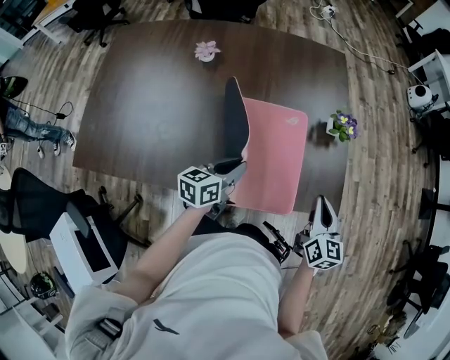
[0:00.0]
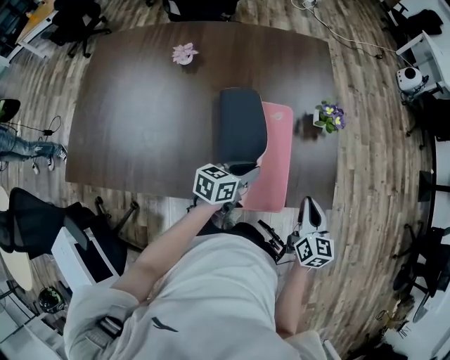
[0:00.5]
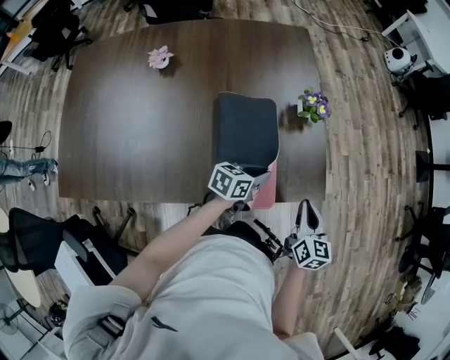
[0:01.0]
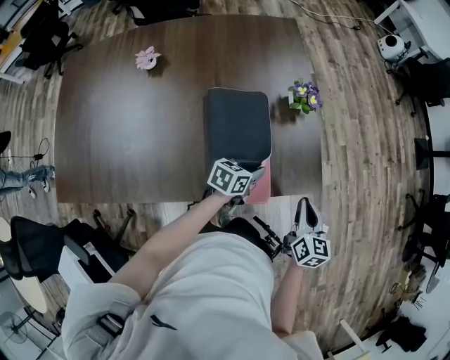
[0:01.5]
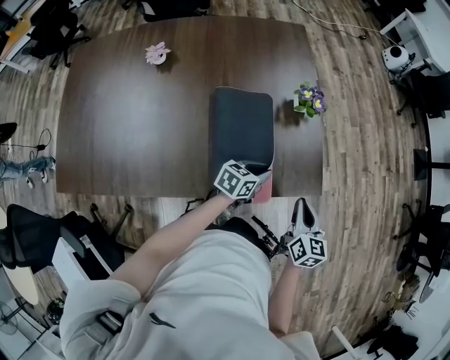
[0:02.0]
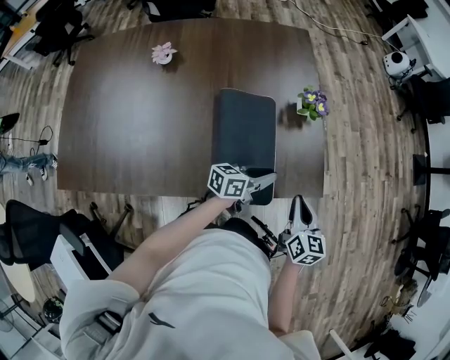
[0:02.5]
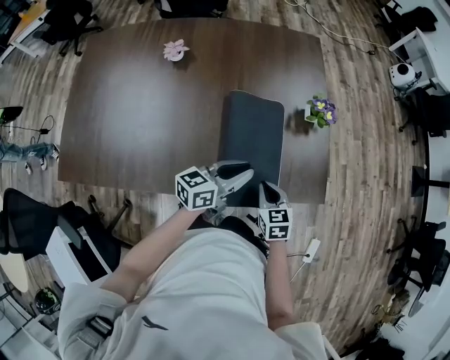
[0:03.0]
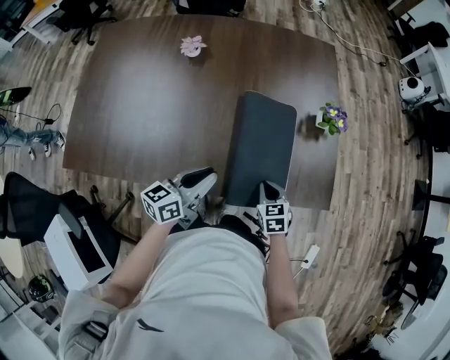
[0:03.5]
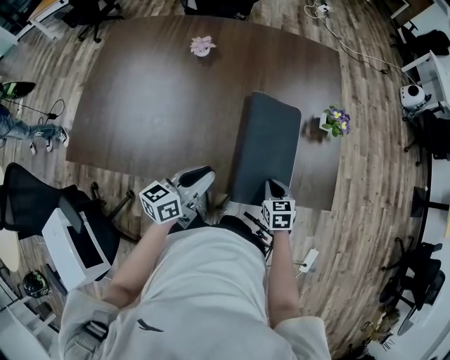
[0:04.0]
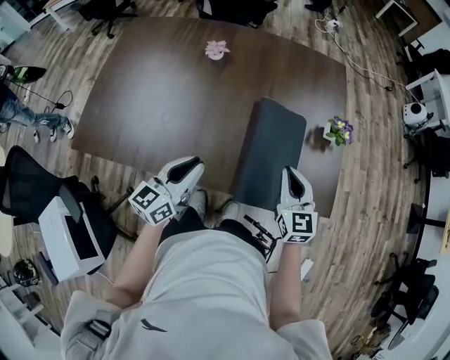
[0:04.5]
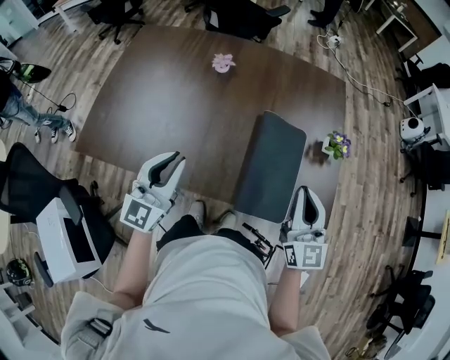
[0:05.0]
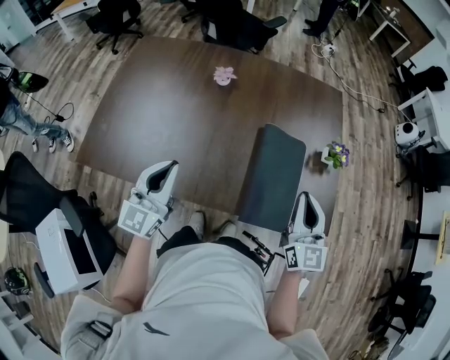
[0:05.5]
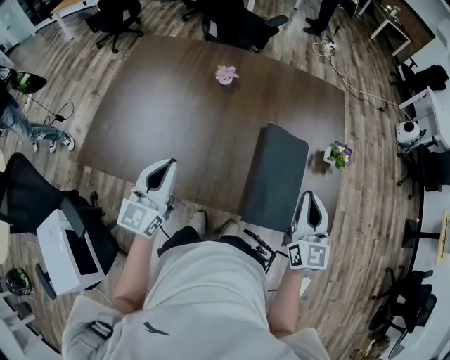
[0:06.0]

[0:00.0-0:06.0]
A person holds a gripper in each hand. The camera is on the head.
0:00.0 to 0:02.0: The right gripper is displaced to the right by about 10 cm. Meanwhile the left gripper shifts approximately 20 cm to the right and forward, and turns by roughly 30 degrees.
0:02.0 to 0:04.0: The left gripper shifts by approximately 30 cm, and swivels some 40 degrees. The right gripper ends up approximately 20 cm from where it was, and swivels approximately 40 degrees.
0:04.0 to 0:06.0: The left gripper is displaced to the left and upward by approximately 20 cm, and turns by about 40 degrees, while the right gripper heads upward, covering roughly 30 cm, and tips its fingers upward by roughly 50 degrees.

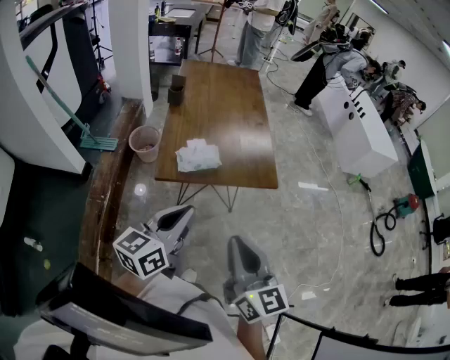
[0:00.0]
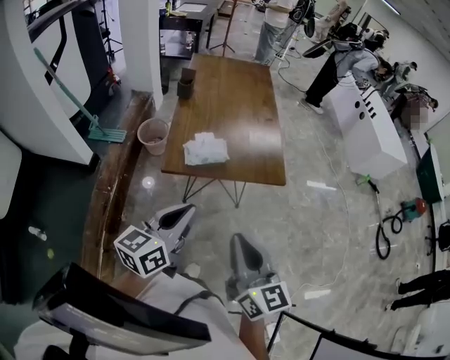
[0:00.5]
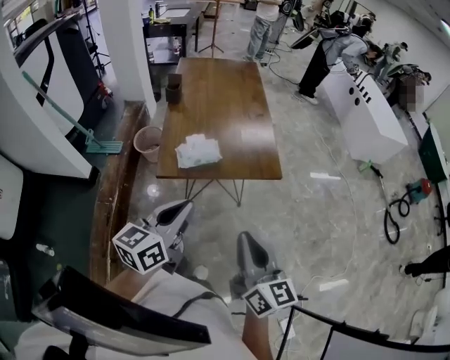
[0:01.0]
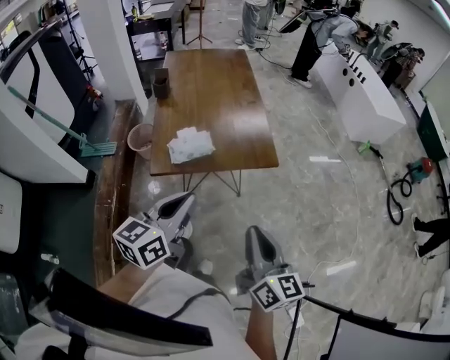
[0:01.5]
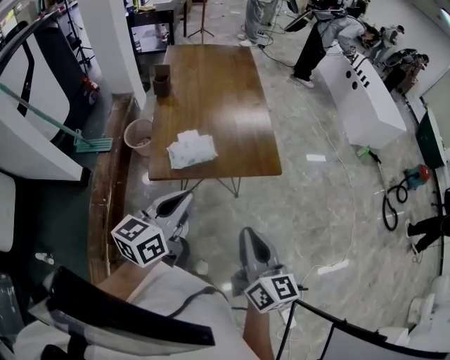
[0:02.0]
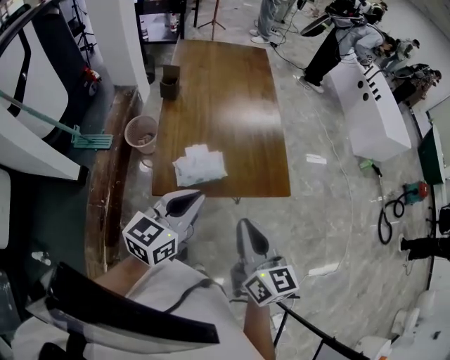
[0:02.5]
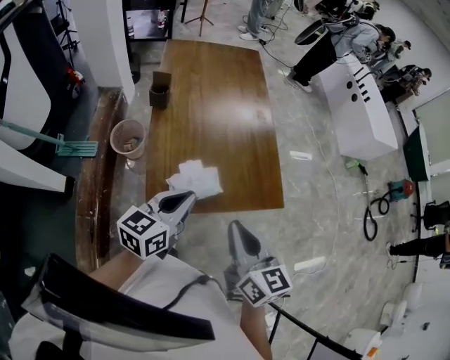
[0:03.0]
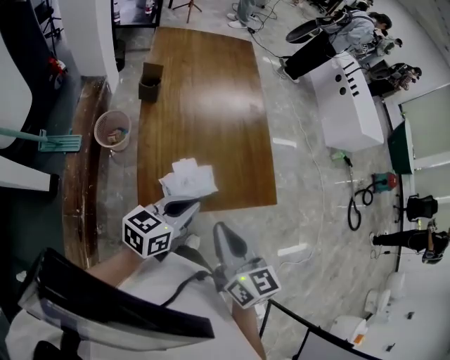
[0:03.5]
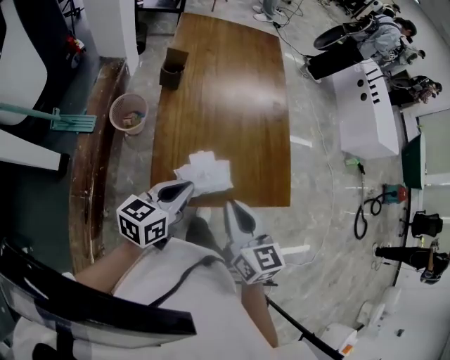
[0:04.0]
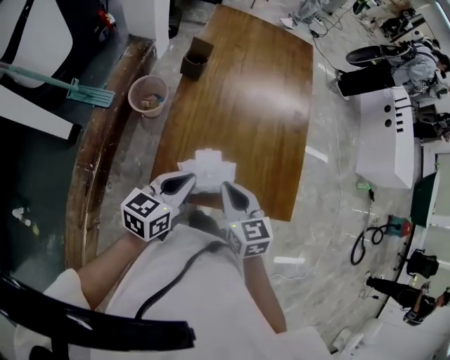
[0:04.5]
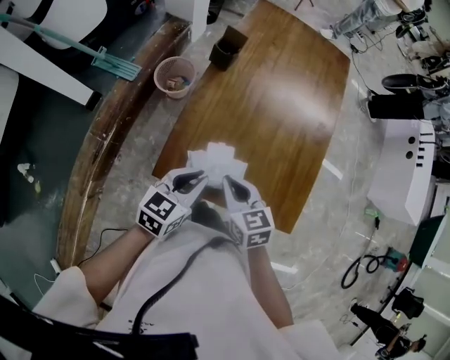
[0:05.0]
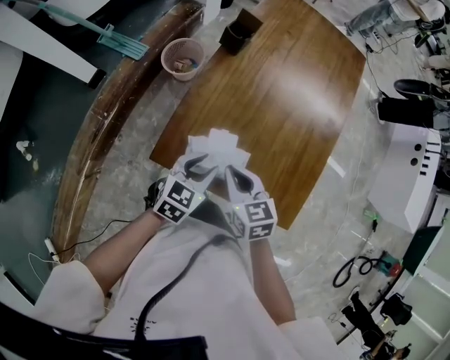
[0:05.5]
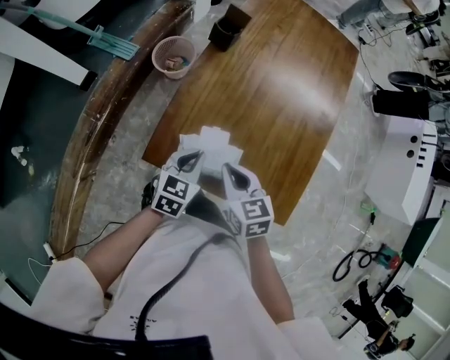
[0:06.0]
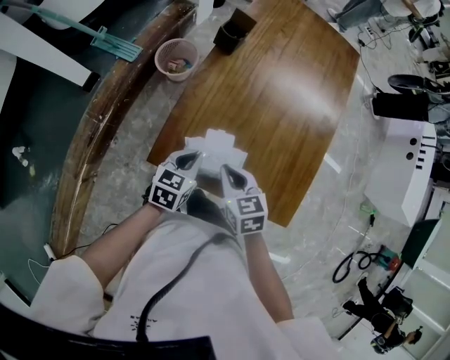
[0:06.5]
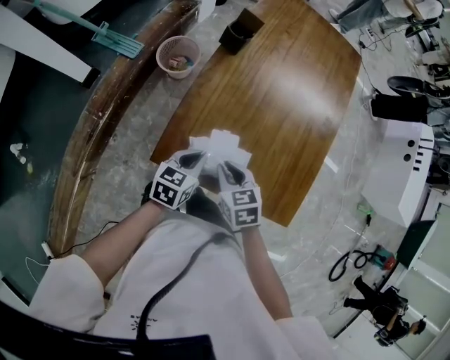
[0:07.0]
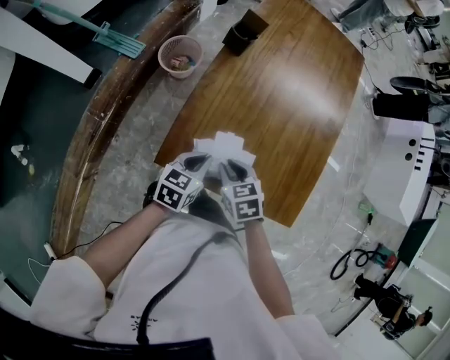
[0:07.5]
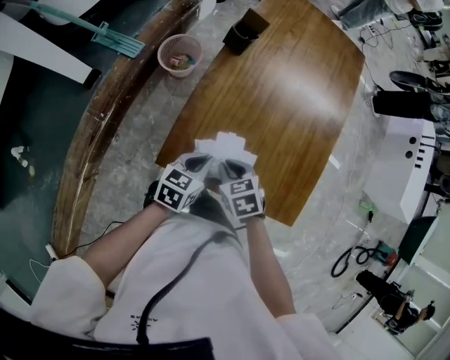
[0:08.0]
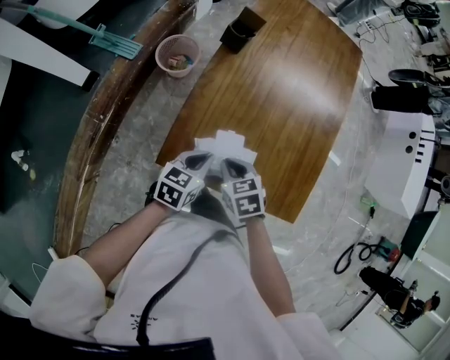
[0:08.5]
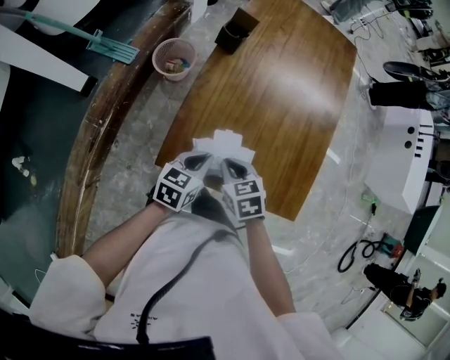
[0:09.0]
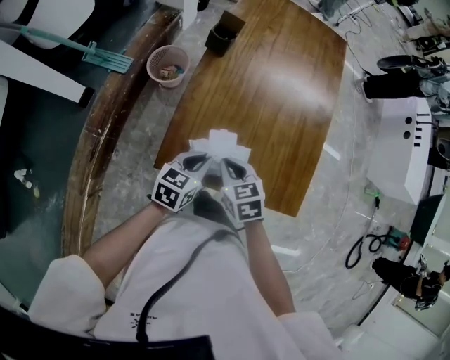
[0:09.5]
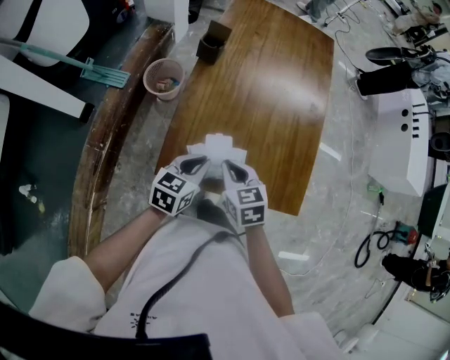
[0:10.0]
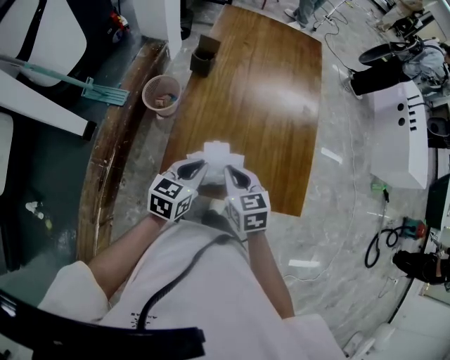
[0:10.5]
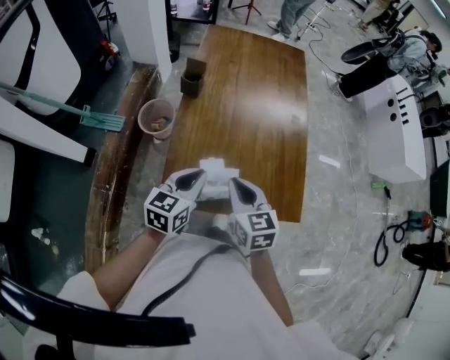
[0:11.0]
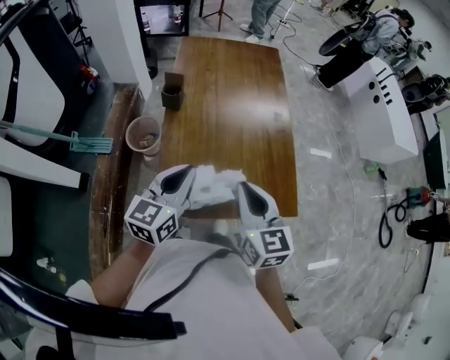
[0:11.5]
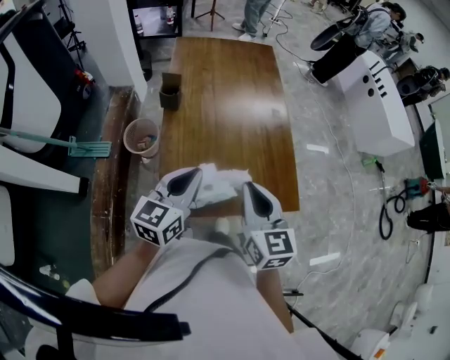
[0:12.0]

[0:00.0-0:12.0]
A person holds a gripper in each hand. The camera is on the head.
0:00.0 to 0:02.0: Both grippers travel together forward, some 5 cm.
0:02.0 to 0:04.0: The right gripper goes approximately 30 cm forward and to the left, and rotates about 20 degrees; the left gripper travels forward, to the left and downward by roughly 25 cm.
0:04.0 to 0:06.0: Both grippers travel together downward, roughly 15 cm. The left gripper turns by approximately 40 degrees, and opens, then closes once more; the right gripper changes its angle by approximately 40 degrees.
0:06.0 to 0:08.0: The right gripper is displaced downward by roughly 5 cm, and turns by roughly 20 degrees.
0:08.0 to 0:10.0: Both grippers travel together upward, roughly 5 cm. The right gripper changes its angle by about 20 degrees.
0:10.0 to 0:12.0: Both grippers travel together upward, roughly 20 cm. The right gripper changes its angle by approximately 40 degrees, while the left gripper changes its angle by approximately 20 degrees.

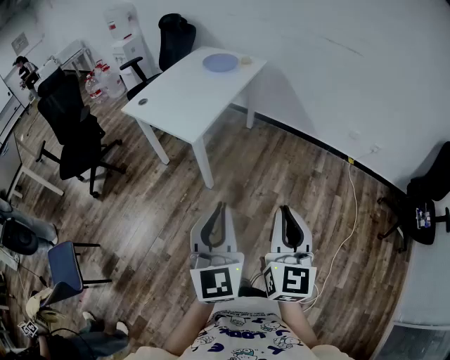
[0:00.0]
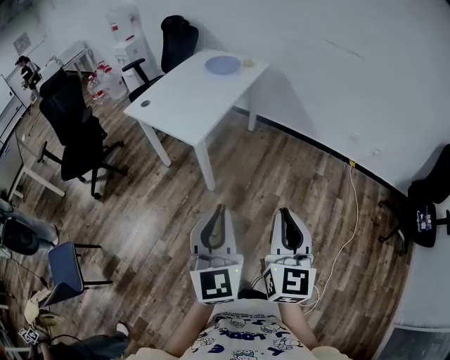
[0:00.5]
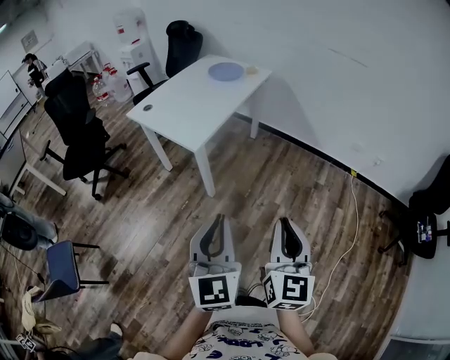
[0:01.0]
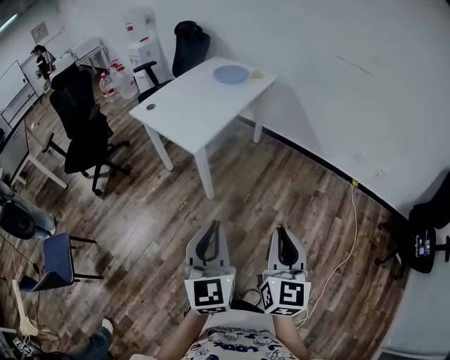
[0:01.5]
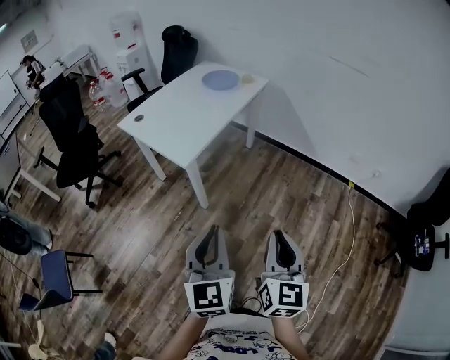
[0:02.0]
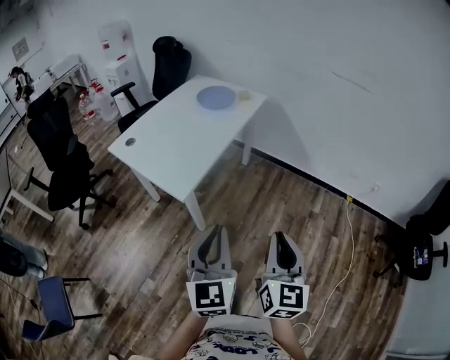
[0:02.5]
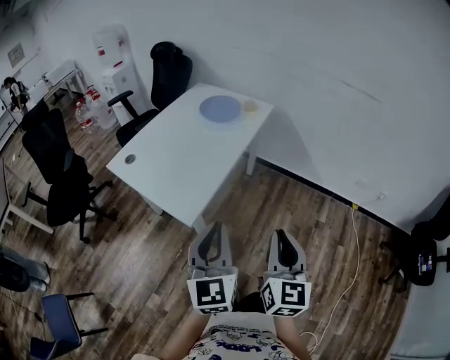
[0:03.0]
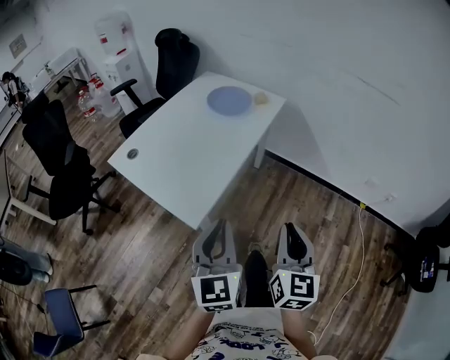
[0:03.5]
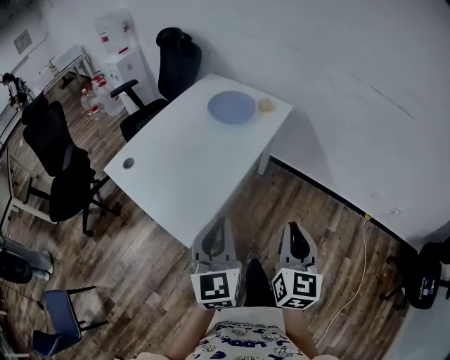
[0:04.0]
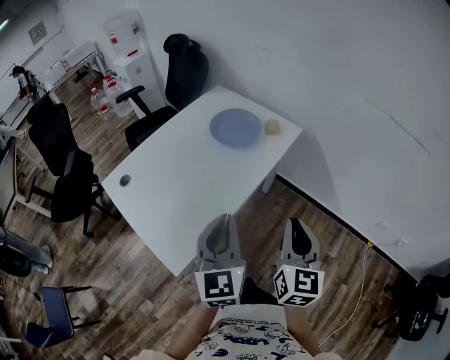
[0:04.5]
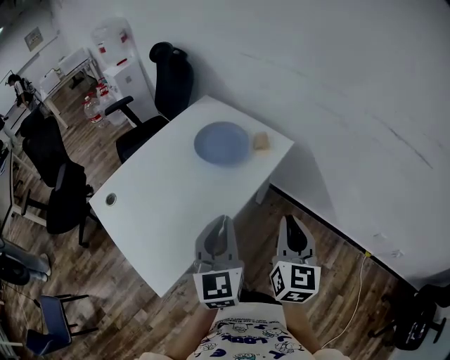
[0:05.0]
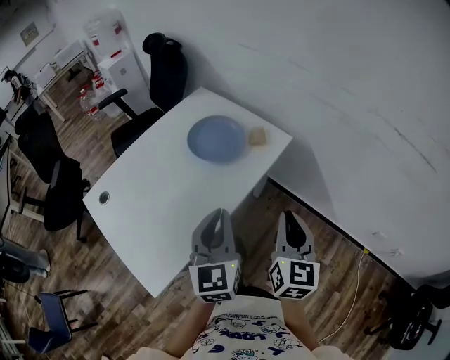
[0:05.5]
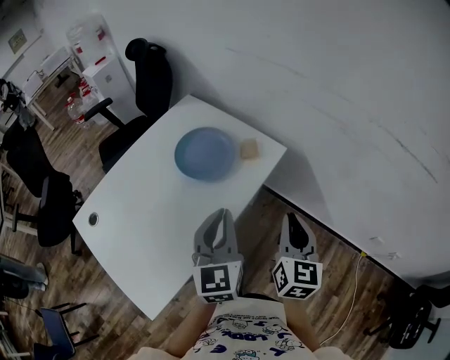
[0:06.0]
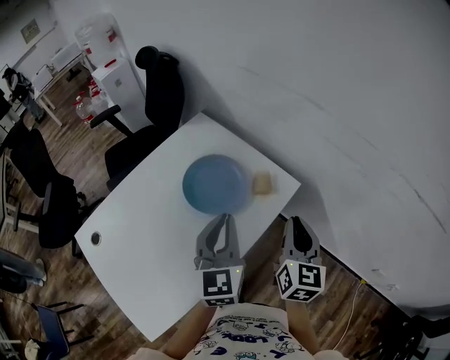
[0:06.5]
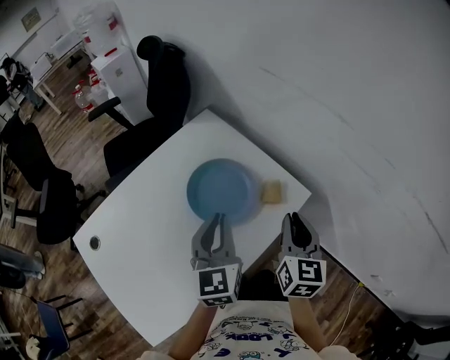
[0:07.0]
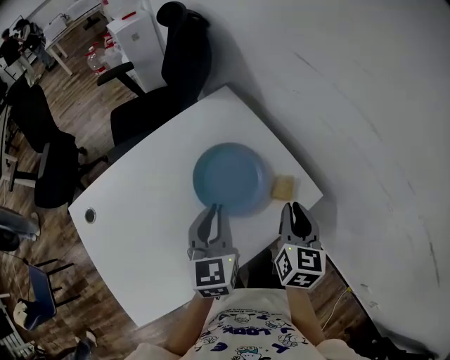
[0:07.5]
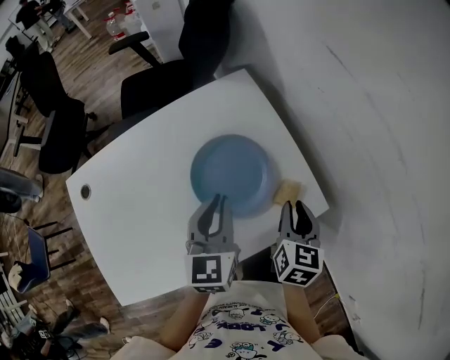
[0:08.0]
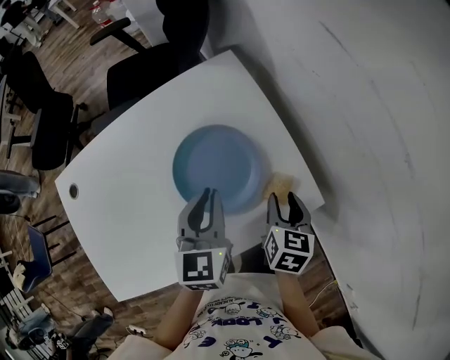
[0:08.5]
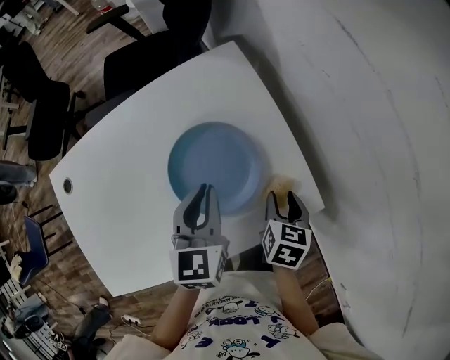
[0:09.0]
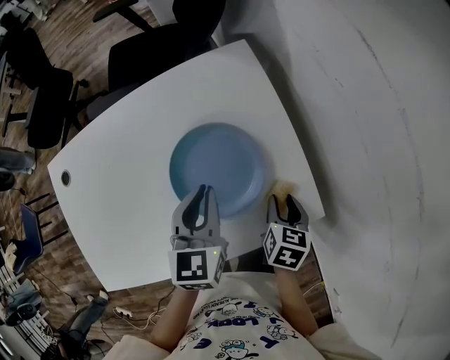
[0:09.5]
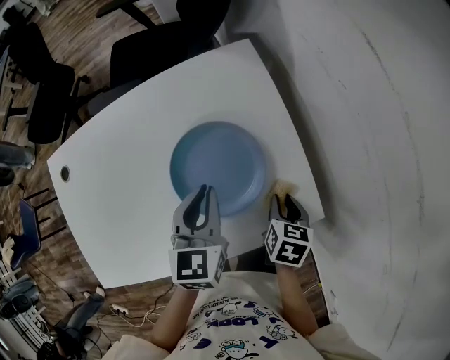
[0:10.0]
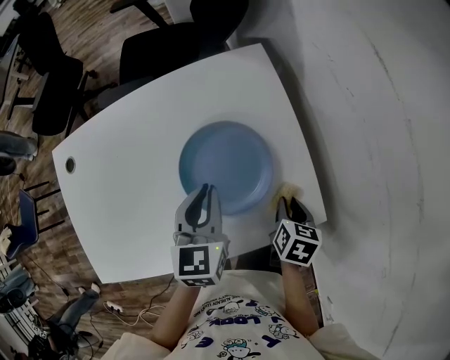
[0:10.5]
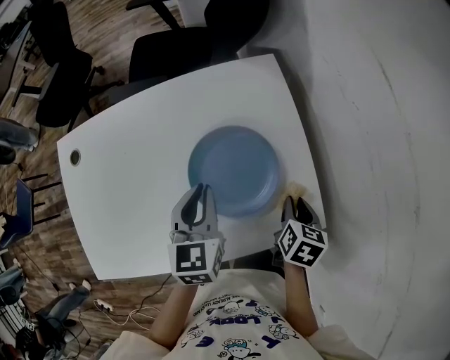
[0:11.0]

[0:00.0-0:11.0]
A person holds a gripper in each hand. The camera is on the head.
0:00.0 to 0:02.0: The grippers both shift forward by roughly 5 cm.
0:02.0 to 0:03.5: The grippers both shift forward by approximately 30 cm.
0:03.5 to 0:05.5: Both grippers travel together forward, some 35 cm.
0:05.5 to 0:07.5: Both grippers move forward, roughly 30 cm.
0:07.5 to 0:09.0: The right gripper shifts some 15 cm downward and forward, swivels roughly 30 degrees, and opens up; the left gripper is displaced forward and downward by approximately 10 cm.
0:09.0 to 0:11.0: The left gripper shifts approximately 5 cm to the left.
